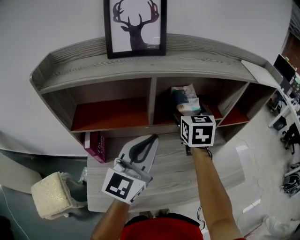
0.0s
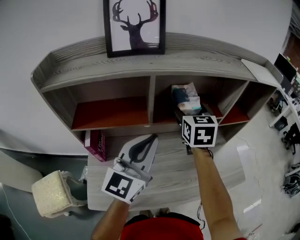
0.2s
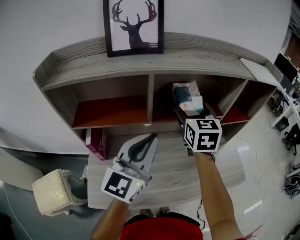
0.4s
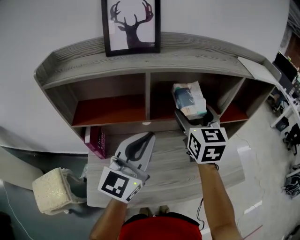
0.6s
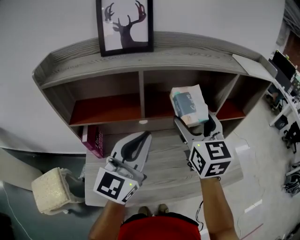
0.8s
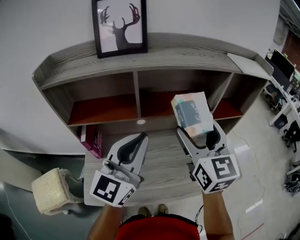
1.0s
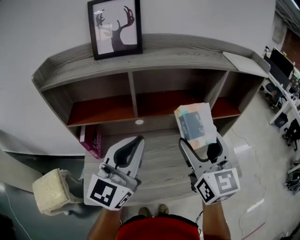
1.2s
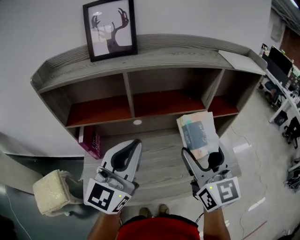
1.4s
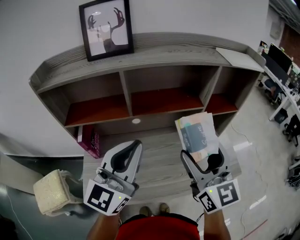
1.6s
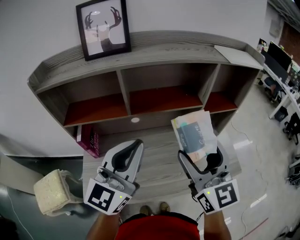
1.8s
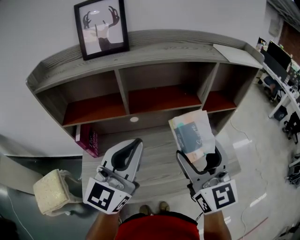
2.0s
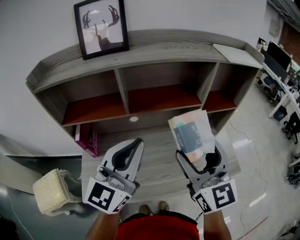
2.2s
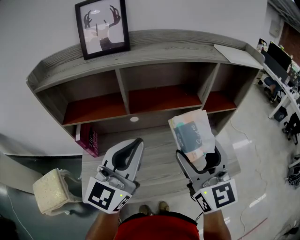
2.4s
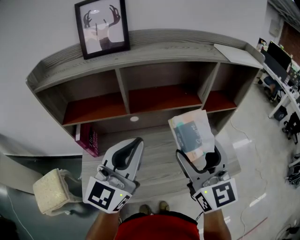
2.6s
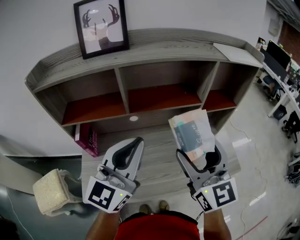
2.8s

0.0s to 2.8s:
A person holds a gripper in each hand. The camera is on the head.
0.0s to 1.4s: The left gripper goes roughly 5 cm backward. The right gripper shifts some 25 cm backward and to the right, and changes its angle by about 30 degrees.
1.4s to 2.8s: The grippers stay close to where they were, moving slightly.

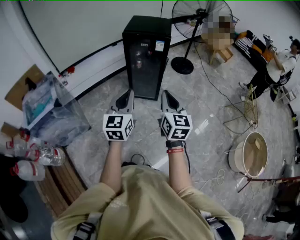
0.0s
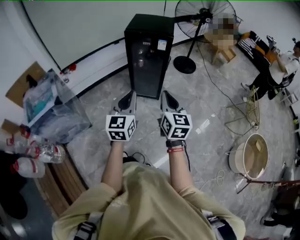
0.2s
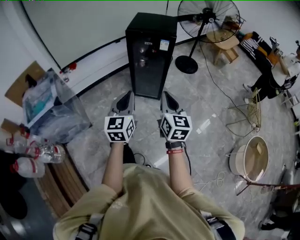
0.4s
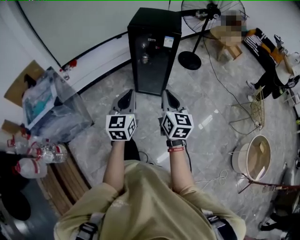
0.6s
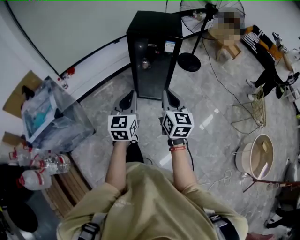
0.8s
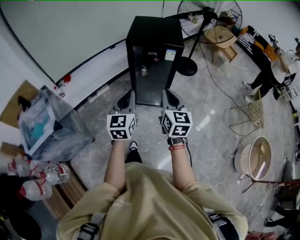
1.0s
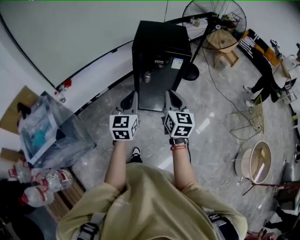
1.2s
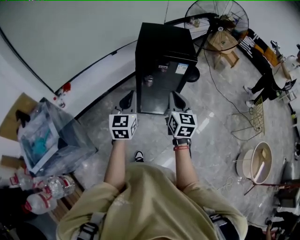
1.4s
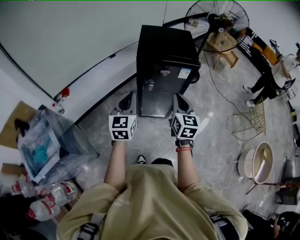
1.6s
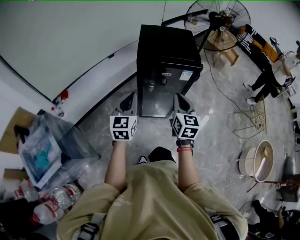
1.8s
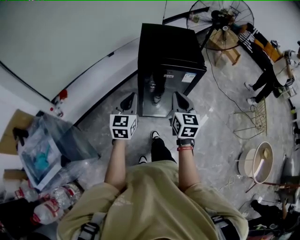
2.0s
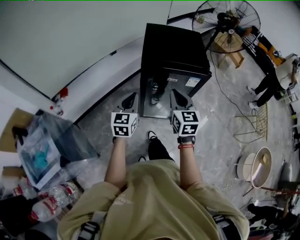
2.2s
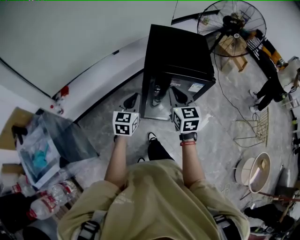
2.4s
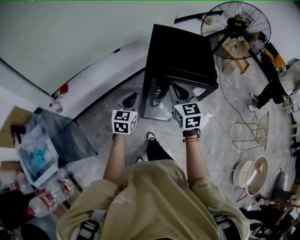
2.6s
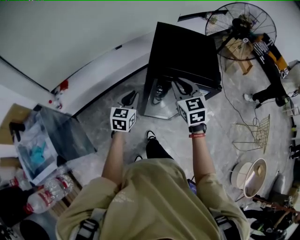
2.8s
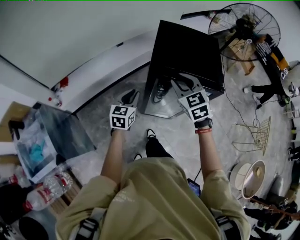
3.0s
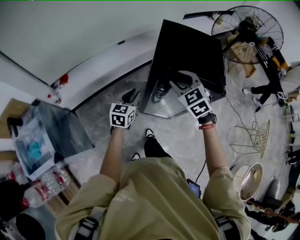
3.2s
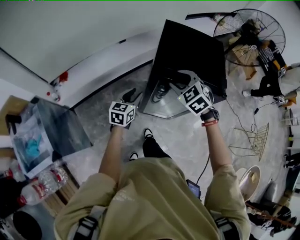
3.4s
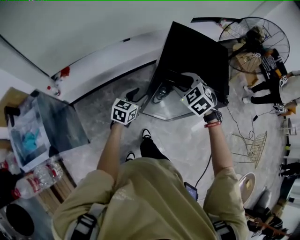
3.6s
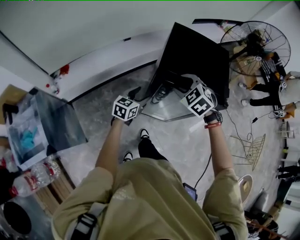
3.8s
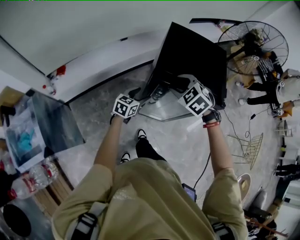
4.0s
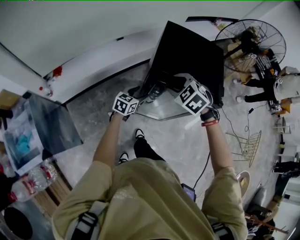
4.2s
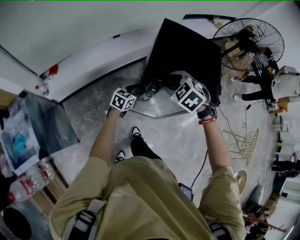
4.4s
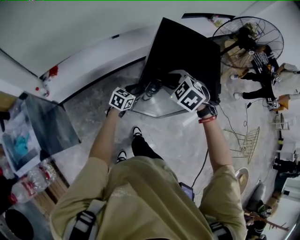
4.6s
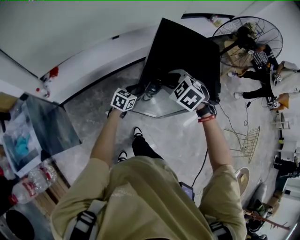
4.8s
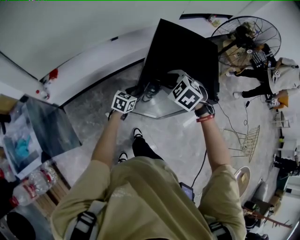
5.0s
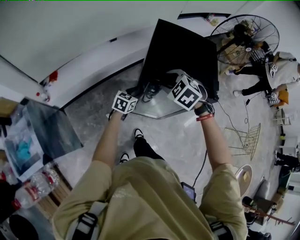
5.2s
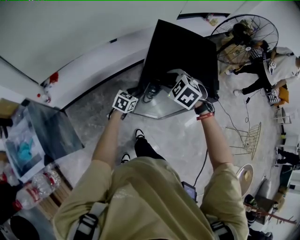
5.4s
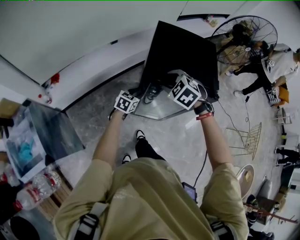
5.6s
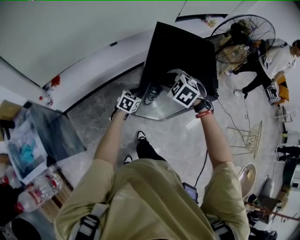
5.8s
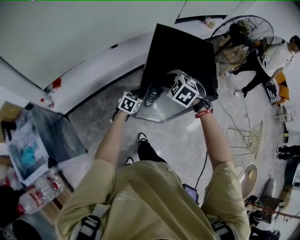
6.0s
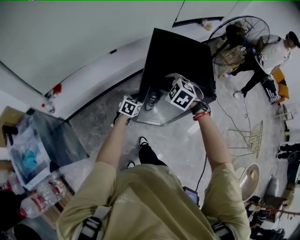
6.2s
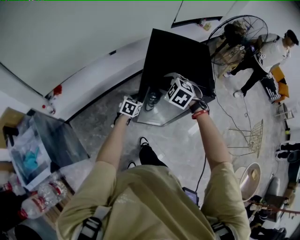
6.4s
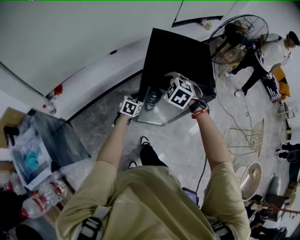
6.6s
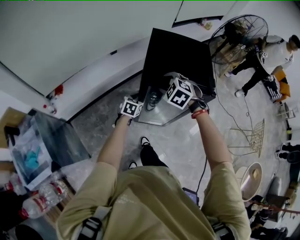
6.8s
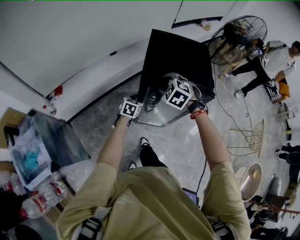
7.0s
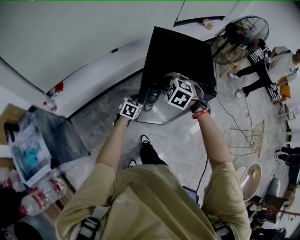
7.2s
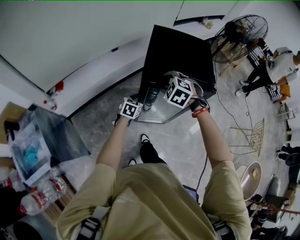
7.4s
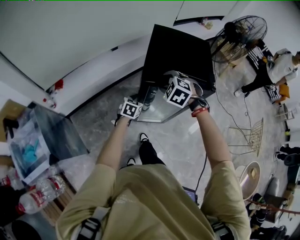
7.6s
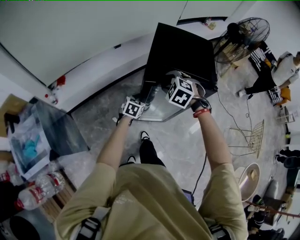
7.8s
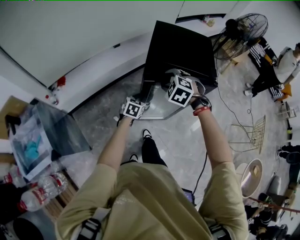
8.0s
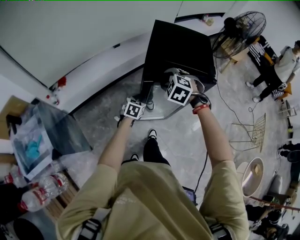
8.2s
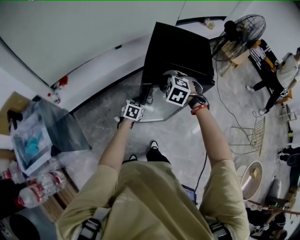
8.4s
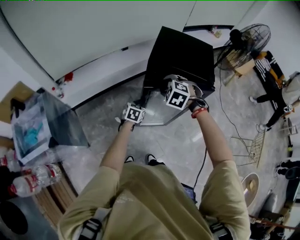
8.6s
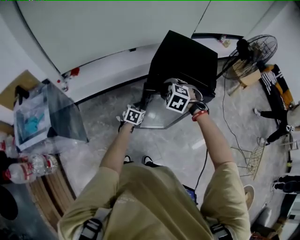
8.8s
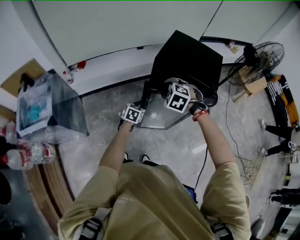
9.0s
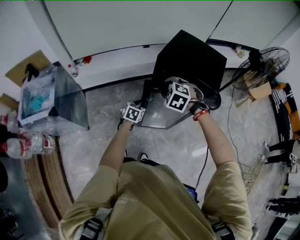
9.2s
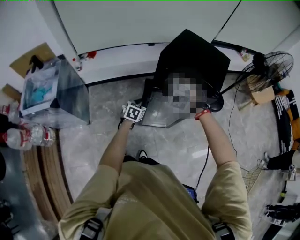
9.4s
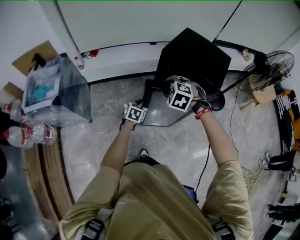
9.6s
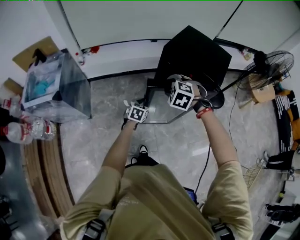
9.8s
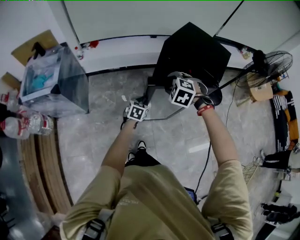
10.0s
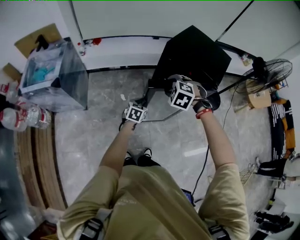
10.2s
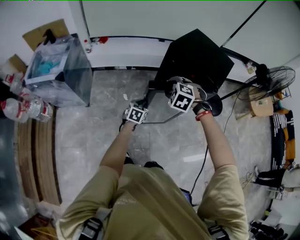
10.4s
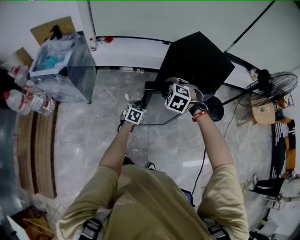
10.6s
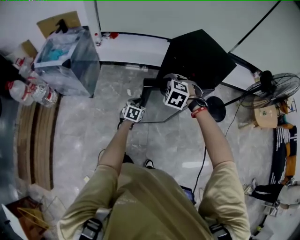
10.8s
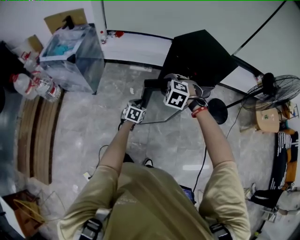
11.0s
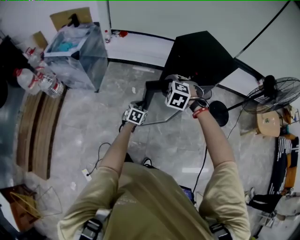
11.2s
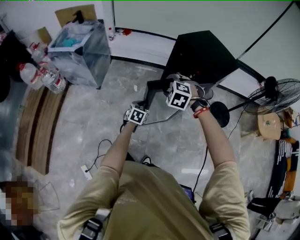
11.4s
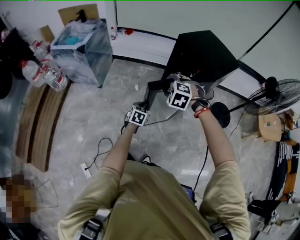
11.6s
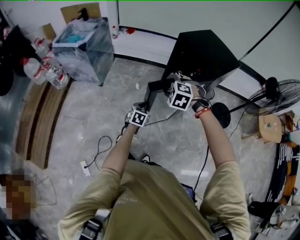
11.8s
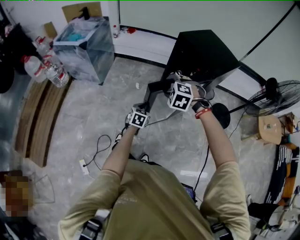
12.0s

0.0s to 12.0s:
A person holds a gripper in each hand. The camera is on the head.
0.0s to 1.6s: The left gripper travels forward and to the left by about 40 cm. Meanwhile the right gripper goes about 35 cm forward.
1.6s to 3.0s: The right gripper moves forward, roughly 25 cm, changes its angle by some 40 degrees, and opens, while the left gripper travels forward and downward by roughly 25 cm.
3.0s to 4.4s: The right gripper goes roughly 5 cm downward, and changes its angle by some 40 degrees, while the left gripper is displaced downward, forward and to the right by approximately 15 cm, and opens.
4.4s to 6.0s: The left gripper closes its fingers.
6.0s to 7.6s: The grippers stay close to where they were, moving slightly.
7.6s to 9.0s: Both grippers move backward, roughly 10 cm.
9.0s to 10.4s: The grippers both shift backward by about 15 cm.
10.4s to 12.0s: The grippers both shift backward by about 20 cm. The right gripper turns by about 20 degrees.

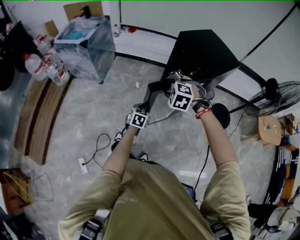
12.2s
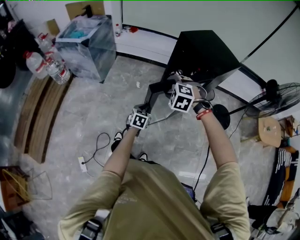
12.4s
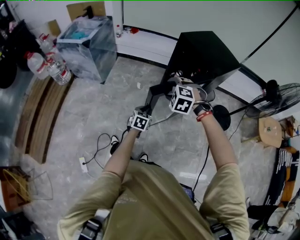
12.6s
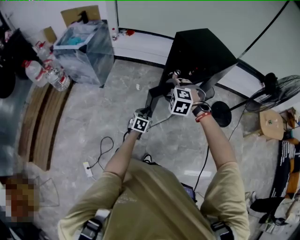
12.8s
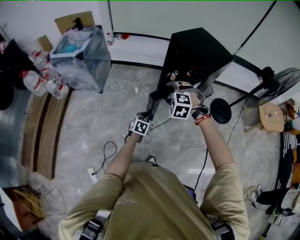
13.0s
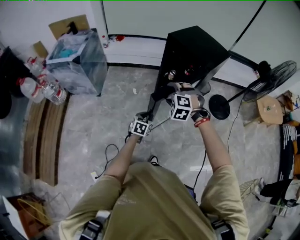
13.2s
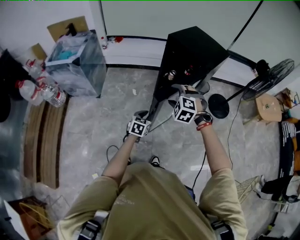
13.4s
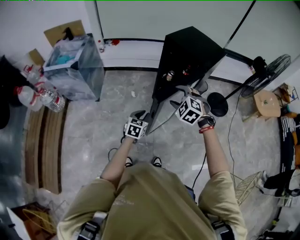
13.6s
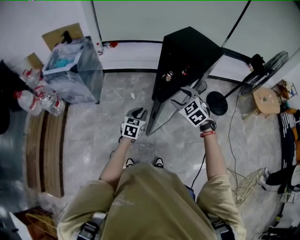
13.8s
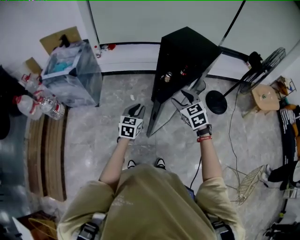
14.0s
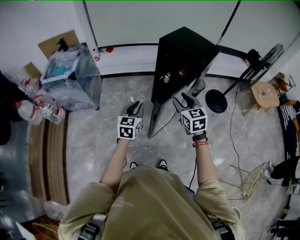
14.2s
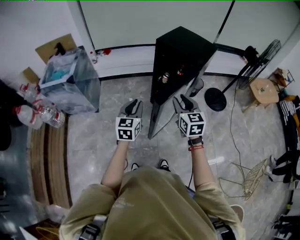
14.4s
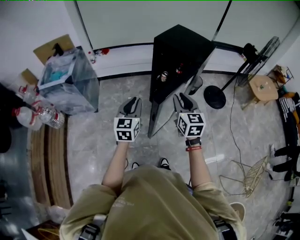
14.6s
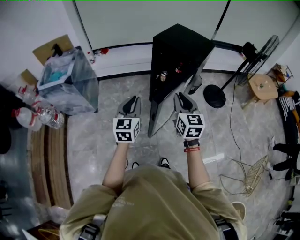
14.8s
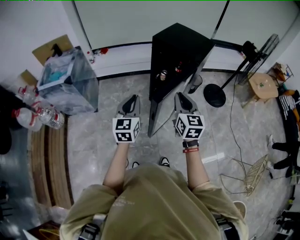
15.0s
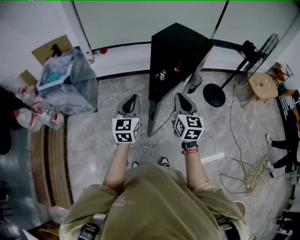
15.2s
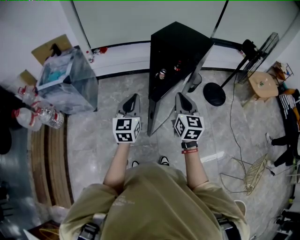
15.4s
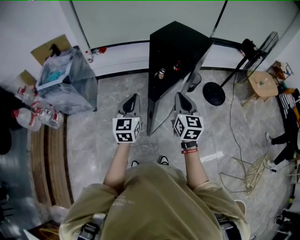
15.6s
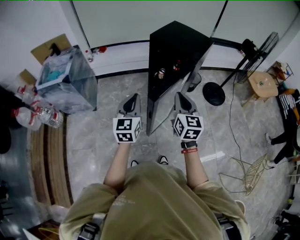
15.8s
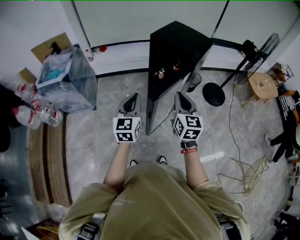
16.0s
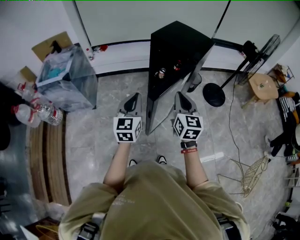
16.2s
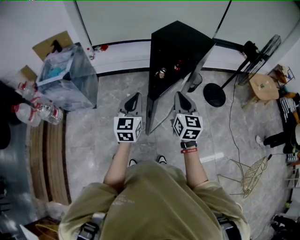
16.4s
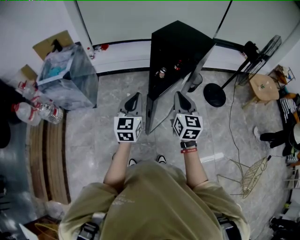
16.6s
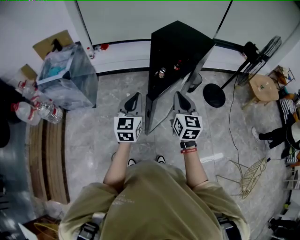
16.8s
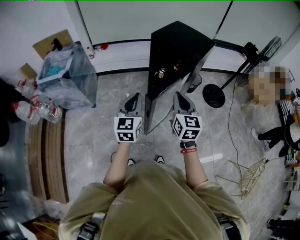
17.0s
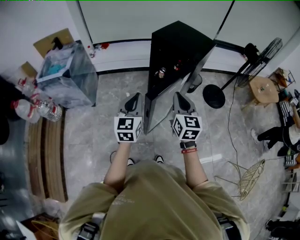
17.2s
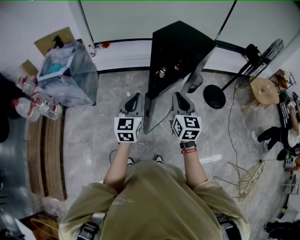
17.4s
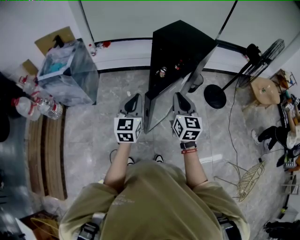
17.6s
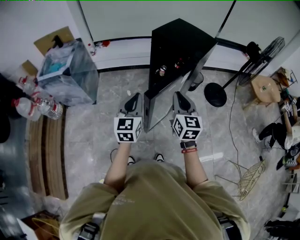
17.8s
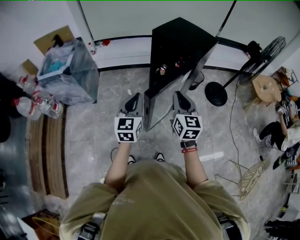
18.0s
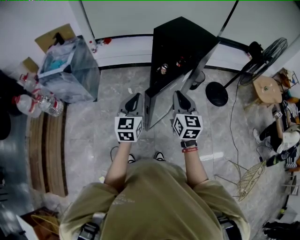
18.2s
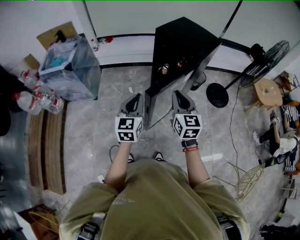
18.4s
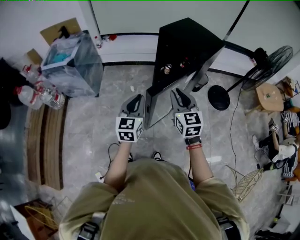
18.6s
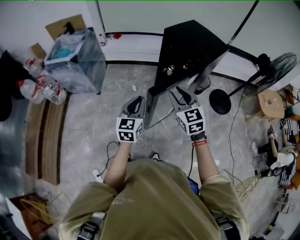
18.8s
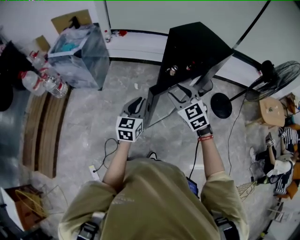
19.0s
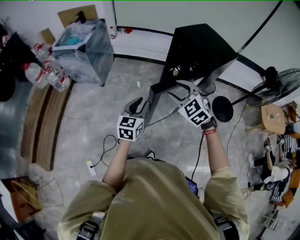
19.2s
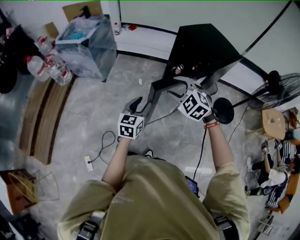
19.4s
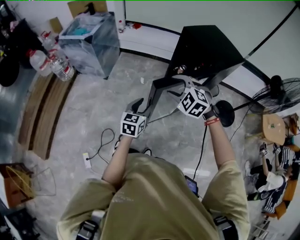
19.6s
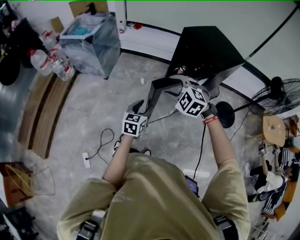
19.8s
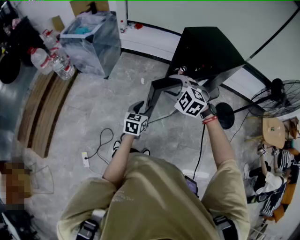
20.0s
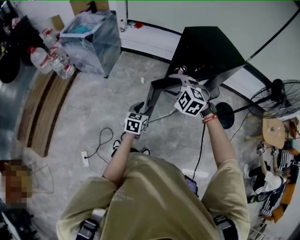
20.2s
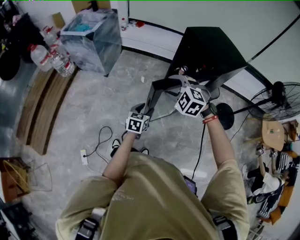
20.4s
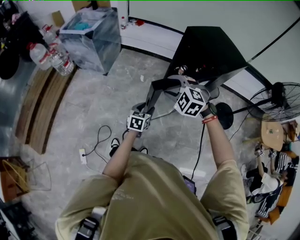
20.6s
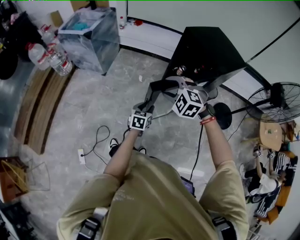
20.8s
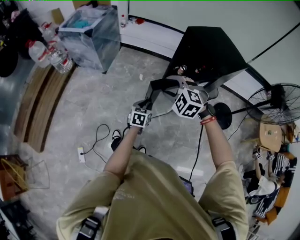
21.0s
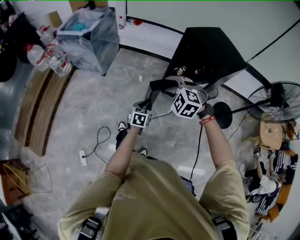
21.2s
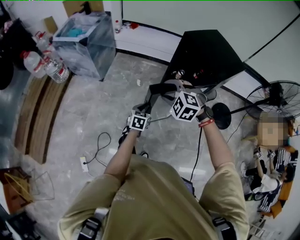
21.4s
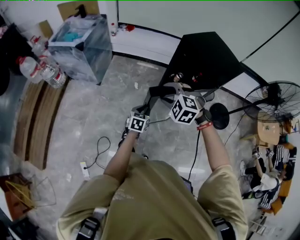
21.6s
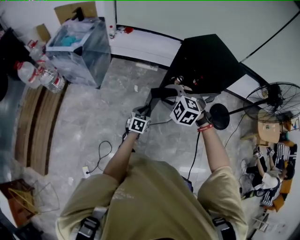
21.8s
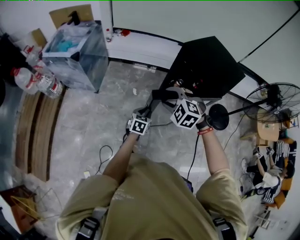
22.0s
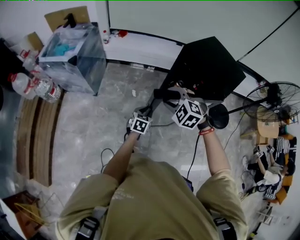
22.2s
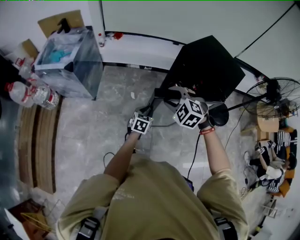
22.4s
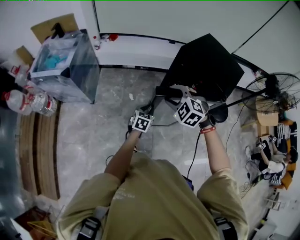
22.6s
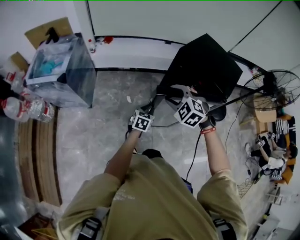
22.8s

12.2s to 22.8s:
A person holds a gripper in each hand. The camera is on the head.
12.2s to 13.8s: The right gripper moves upward, some 5 cm, and turns by about 40 degrees; the left gripper travels upward and to the left by some 10 cm.
13.8s to 15.2s: The left gripper is displaced upward by some 15 cm, and turns by about 20 degrees, while the right gripper goes approximately 5 cm upward, turns by about 60 degrees, and closes.
15.2s to 18.2s: The grippers stay close to where they were, moving slightly.
18.2s to 19.8s: The right gripper goes roughly 10 cm to the left and downward, tilts its fingers about 30 degrees downward, and opens its fingers; the left gripper travels downward by some 15 cm, and opens up.
19.8s to 21.2s: The left gripper is displaced downward and forward by roughly 10 cm, and closes.
21.2s to 22.8s: The two grippers go approximately 20 cm forward. The left gripper changes its angle by approximately 20 degrees, while the right gripper rotates approximately 30 degrees.
